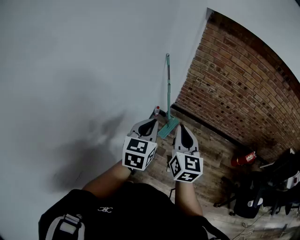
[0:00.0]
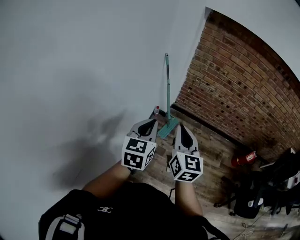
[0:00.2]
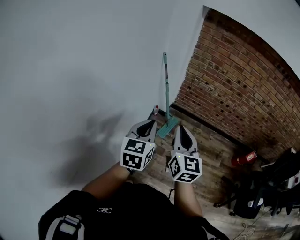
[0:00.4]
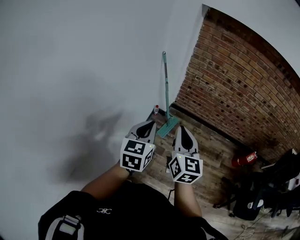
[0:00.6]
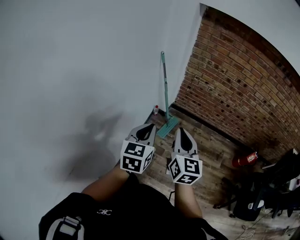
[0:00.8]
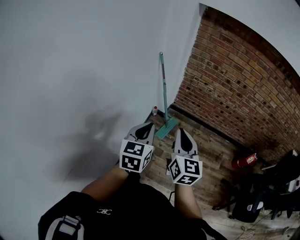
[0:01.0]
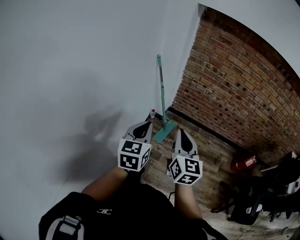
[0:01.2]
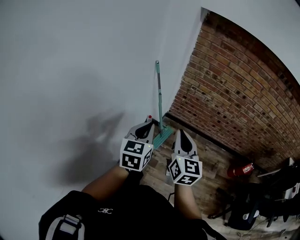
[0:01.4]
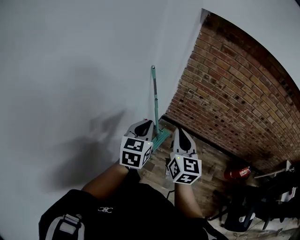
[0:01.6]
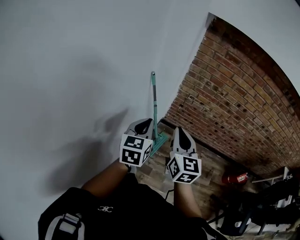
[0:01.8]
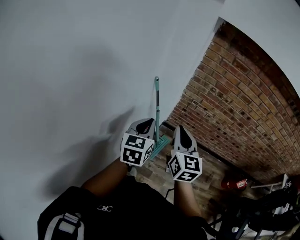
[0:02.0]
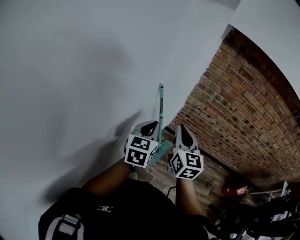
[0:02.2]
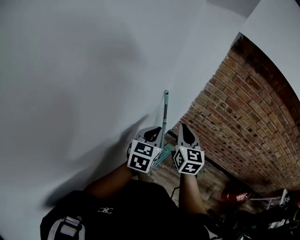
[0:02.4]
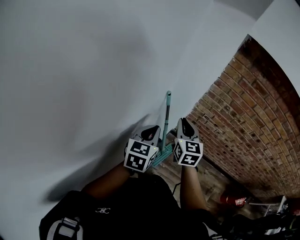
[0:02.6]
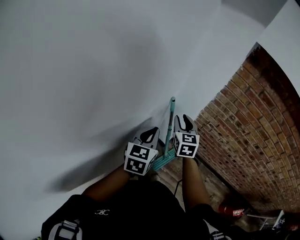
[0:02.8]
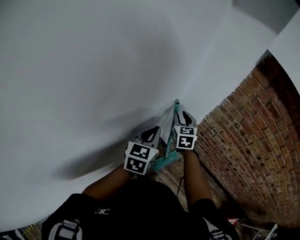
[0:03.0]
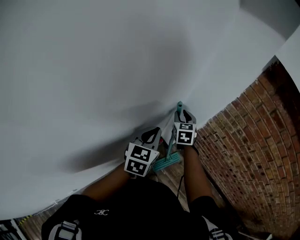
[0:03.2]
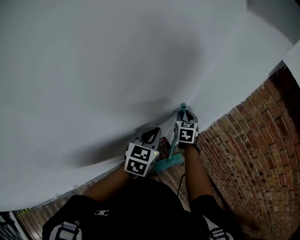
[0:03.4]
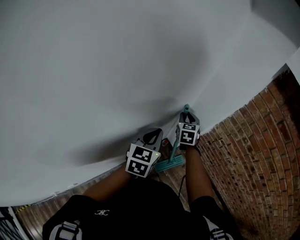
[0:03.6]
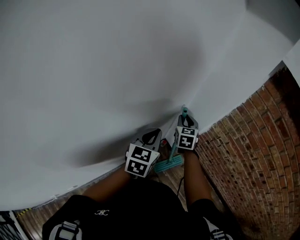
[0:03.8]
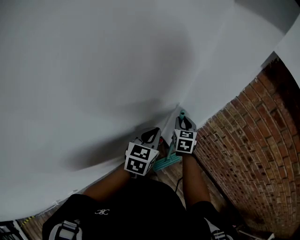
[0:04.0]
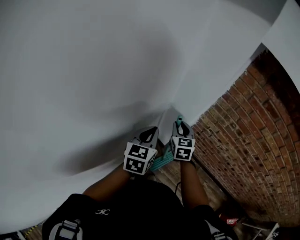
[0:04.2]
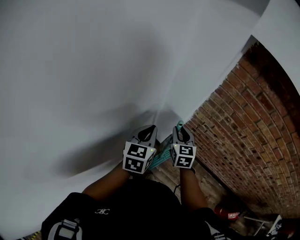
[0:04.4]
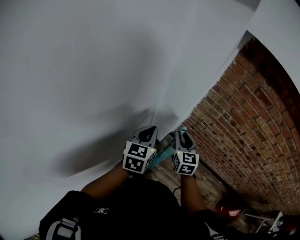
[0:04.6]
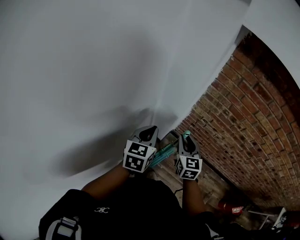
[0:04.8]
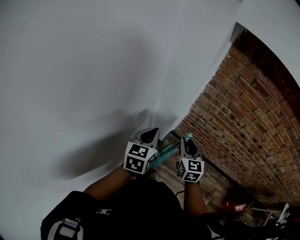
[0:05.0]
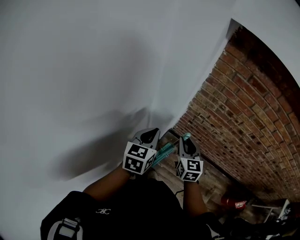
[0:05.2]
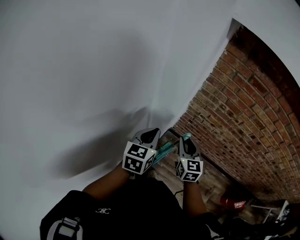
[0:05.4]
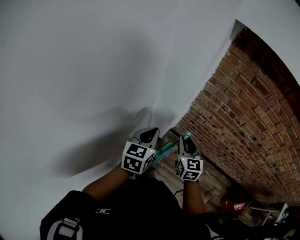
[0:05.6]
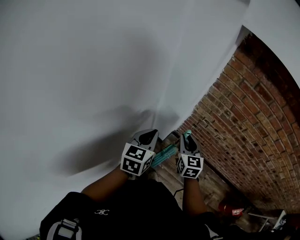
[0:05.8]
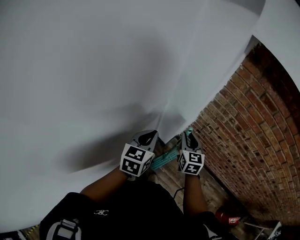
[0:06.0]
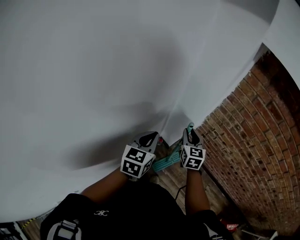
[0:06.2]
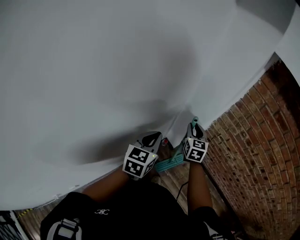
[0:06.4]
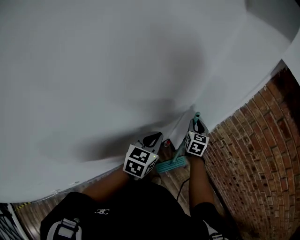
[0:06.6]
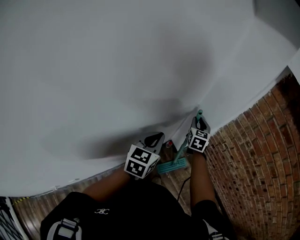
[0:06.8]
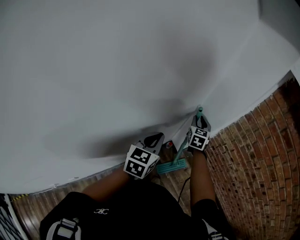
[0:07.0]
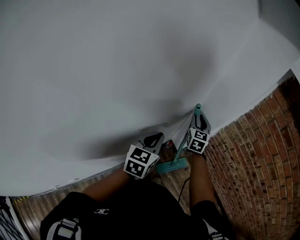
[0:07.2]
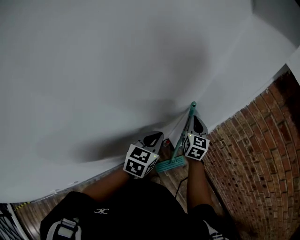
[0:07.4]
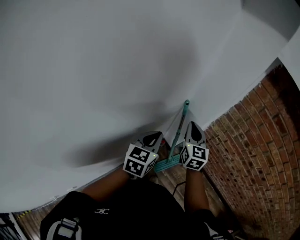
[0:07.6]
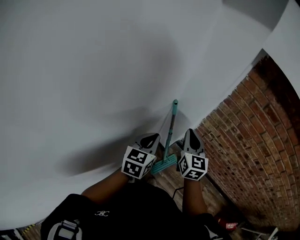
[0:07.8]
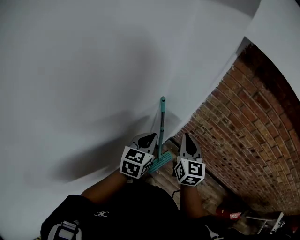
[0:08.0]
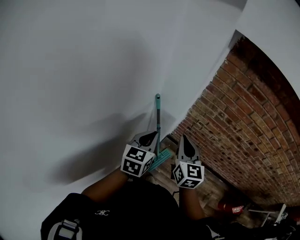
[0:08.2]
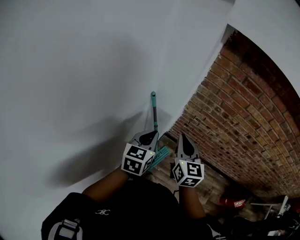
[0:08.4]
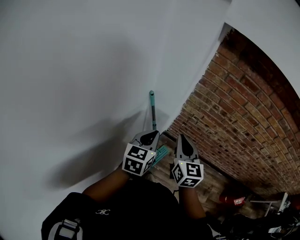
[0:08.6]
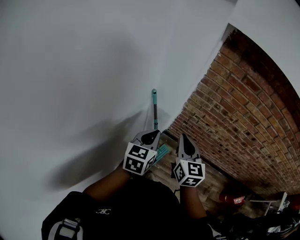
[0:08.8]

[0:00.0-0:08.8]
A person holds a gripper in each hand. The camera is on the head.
0:00.0 to 0:01.4: The left gripper is displaced forward by roughly 10 cm. The right gripper moves forward and to the right, some 15 cm.
0:01.4 to 0:03.0: The left gripper travels forward by roughly 30 cm. Meanwhile the right gripper travels forward by roughly 50 cm, swivels some 30 degrees, and opens its fingers.
0:03.0 to 0:04.4: The left gripper is displaced to the right by roughly 5 cm. The right gripper shifts some 10 cm to the right and backward.
0:04.4 to 0:05.8: The right gripper heads backward and to the right, covering roughly 10 cm.
0:05.8 to 0:07.4: The right gripper travels forward and to the left by approximately 15 cm, and closes. Meanwhile the left gripper travels to the left by roughly 10 cm.
0:07.4 to 0:08.8: The left gripper shifts about 10 cm to the right, and rotates roughly 20 degrees. The right gripper shifts some 20 cm backward, to the right and upward.

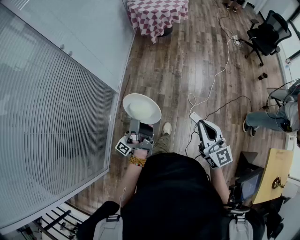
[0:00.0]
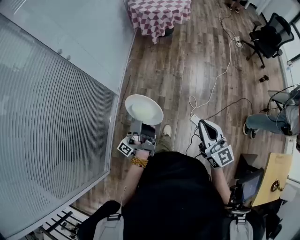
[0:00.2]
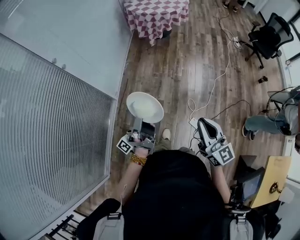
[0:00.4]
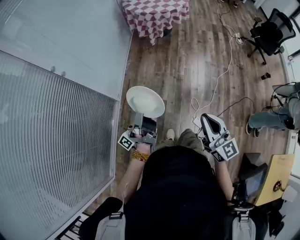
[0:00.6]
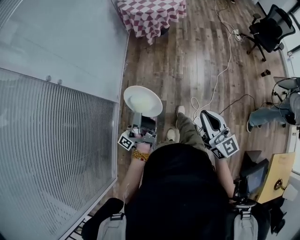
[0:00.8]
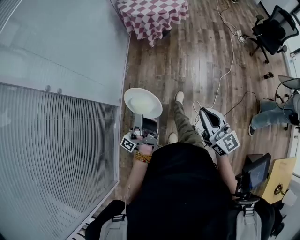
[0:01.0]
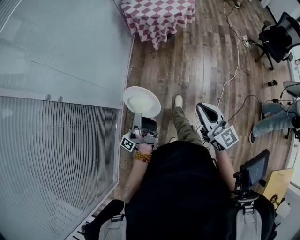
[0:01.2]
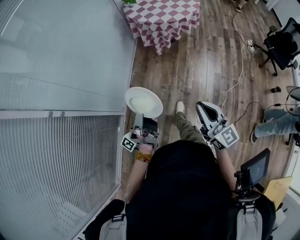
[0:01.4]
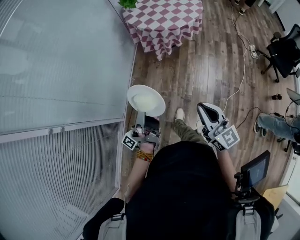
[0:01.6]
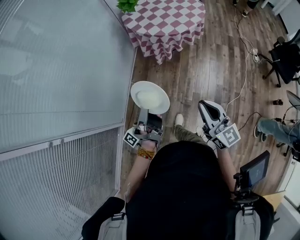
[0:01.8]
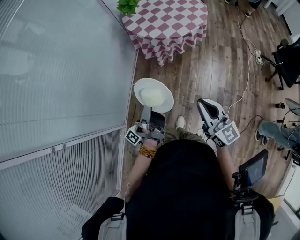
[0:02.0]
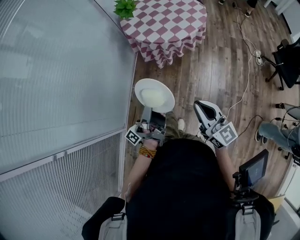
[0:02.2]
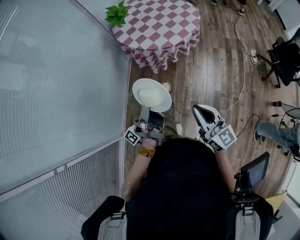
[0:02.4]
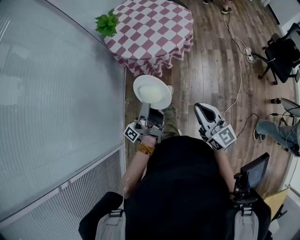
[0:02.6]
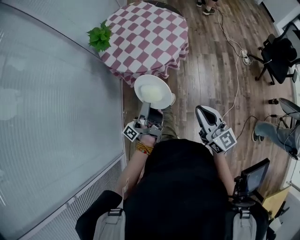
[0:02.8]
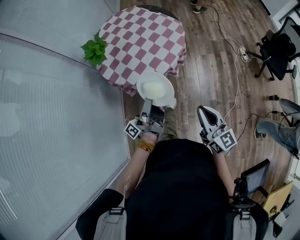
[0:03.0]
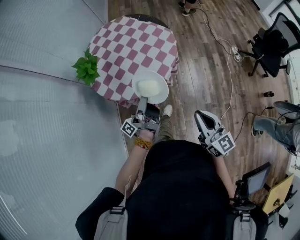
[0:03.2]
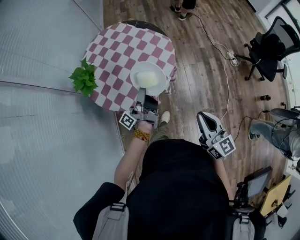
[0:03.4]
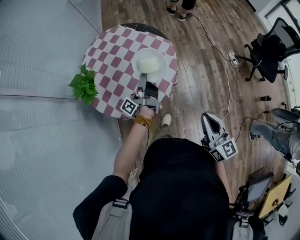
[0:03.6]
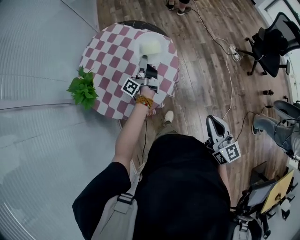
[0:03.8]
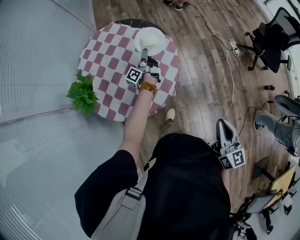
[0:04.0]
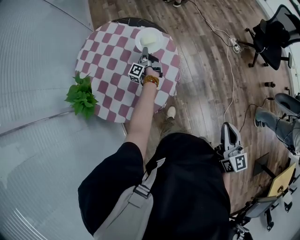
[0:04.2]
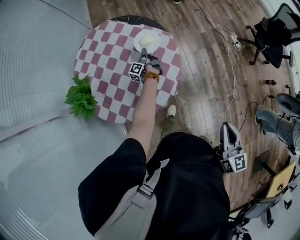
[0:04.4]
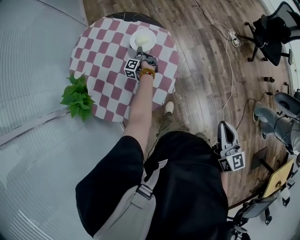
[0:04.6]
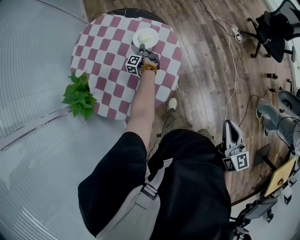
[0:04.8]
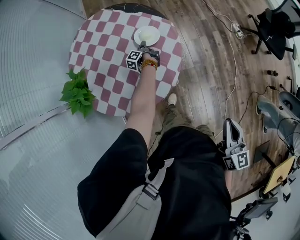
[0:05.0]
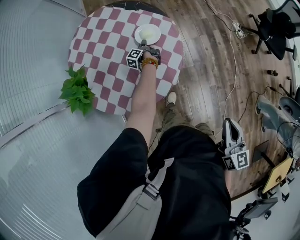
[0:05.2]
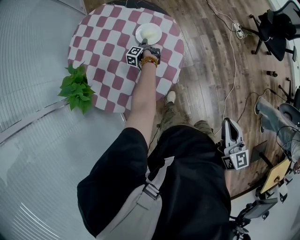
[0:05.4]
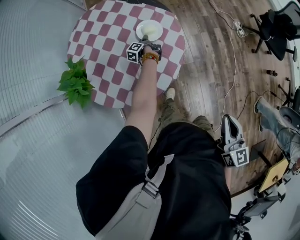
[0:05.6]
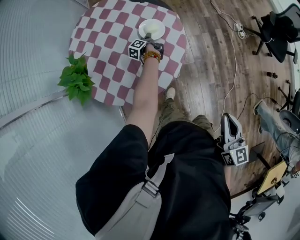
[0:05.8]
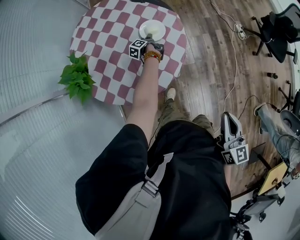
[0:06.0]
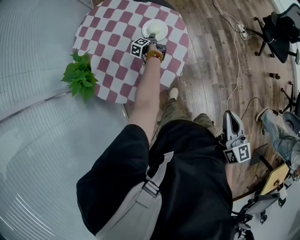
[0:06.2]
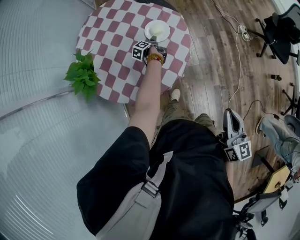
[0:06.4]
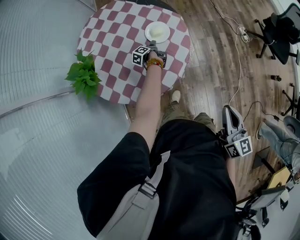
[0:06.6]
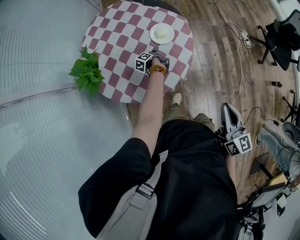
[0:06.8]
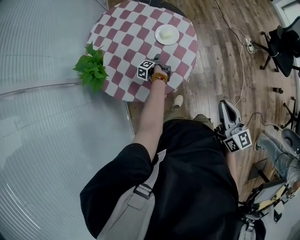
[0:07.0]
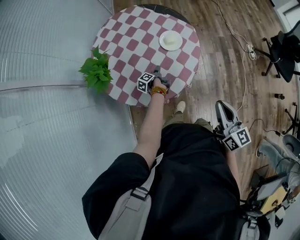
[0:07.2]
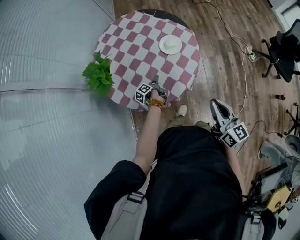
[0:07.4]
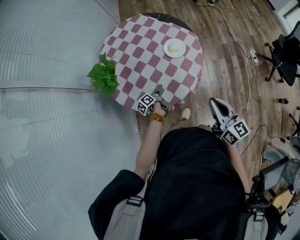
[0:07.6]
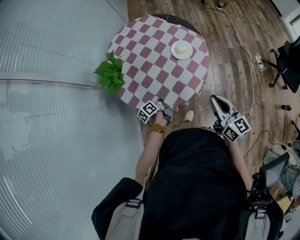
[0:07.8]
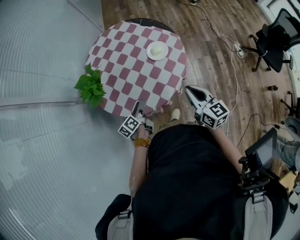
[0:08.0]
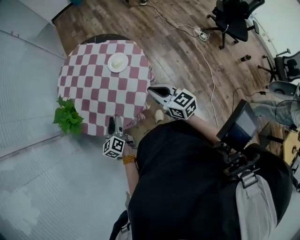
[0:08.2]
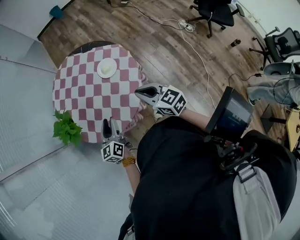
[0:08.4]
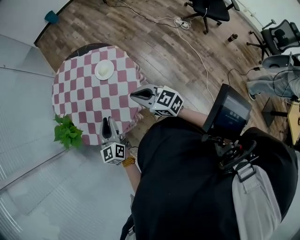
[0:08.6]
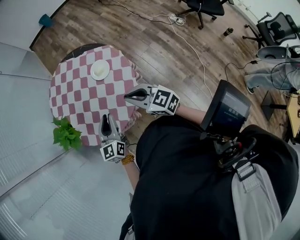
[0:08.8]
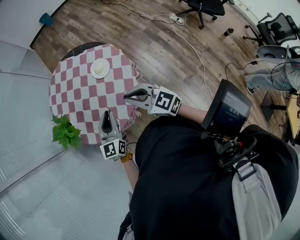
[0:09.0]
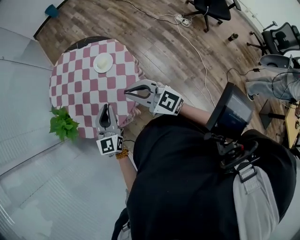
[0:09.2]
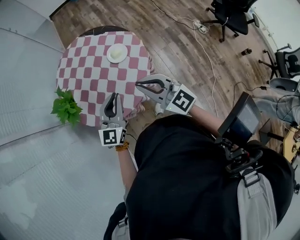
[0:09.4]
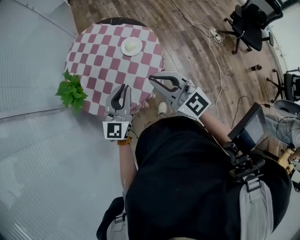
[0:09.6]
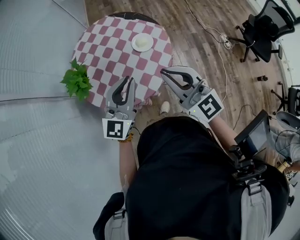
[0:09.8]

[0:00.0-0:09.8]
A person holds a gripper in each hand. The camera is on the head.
0:00.0 to 0:01.4: Both grippers are carried forward, roughly 50 cm.
0:01.4 to 0:02.8: The two grippers travel together, forward and to the right, about 50 cm.
0:02.8 to 0:04.2: The right gripper heads forward and to the right, covering approximately 25 cm, and turns by some 40 degrees; the left gripper goes roughly 60 cm forward, and tips its fingers downward by roughly 30 degrees.
0:04.2 to 0:05.6: The left gripper is displaced downward by approximately 15 cm, and turns by roughly 30 degrees.
0:05.6 to 0:07.0: The left gripper is displaced backward by about 15 cm, and opens, while the right gripper shifts by roughly 5 cm.
0:07.0 to 0:08.4: The left gripper goes about 30 cm upward and backward, and rotates around the line of its fingers by roughly 70 degrees, clockwise from behind, while the right gripper heads to the left and forward, covering about 10 cm.
0:08.4 to 0:09.8: The grippers both shift upward by approximately 15 cm. The right gripper swivels approximately 40 degrees. Meanwhile the left gripper rotates some 40 degrees, and closes up.

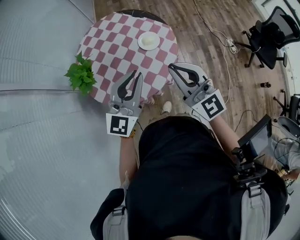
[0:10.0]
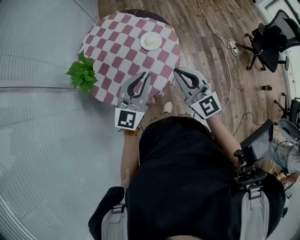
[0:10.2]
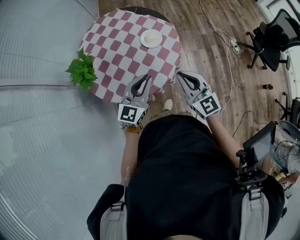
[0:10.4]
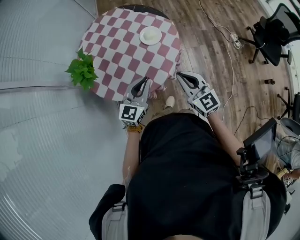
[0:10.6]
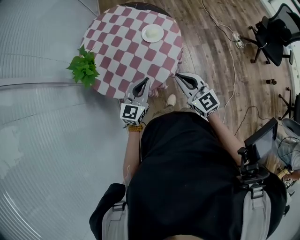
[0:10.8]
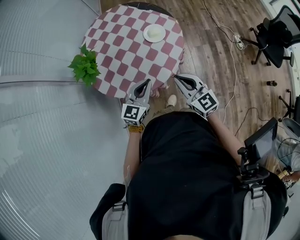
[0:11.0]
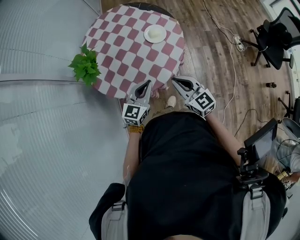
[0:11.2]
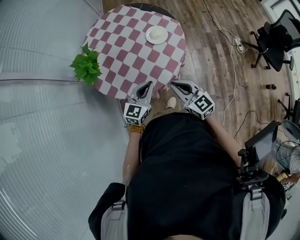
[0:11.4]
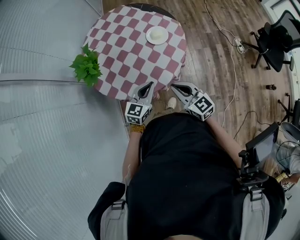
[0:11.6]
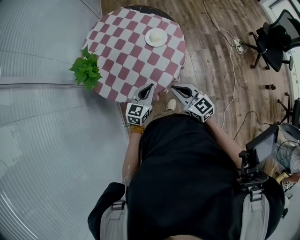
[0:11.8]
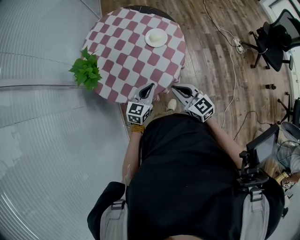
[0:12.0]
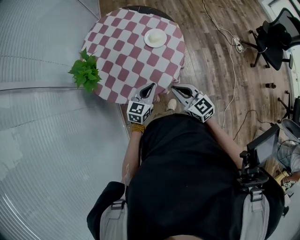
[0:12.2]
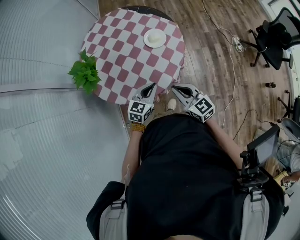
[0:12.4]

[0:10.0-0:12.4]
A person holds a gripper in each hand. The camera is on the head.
0:10.0 to 0:11.2: Both grippers travel together downward, some 20 cm. The left gripper turns by roughly 30 degrees, while the right gripper rotates about 30 degrees.
0:11.2 to 0:12.4: The left gripper moves downward, about 5 cm.

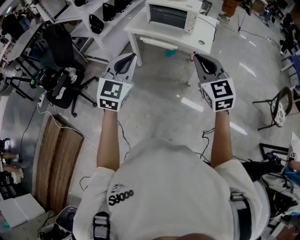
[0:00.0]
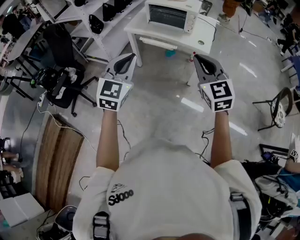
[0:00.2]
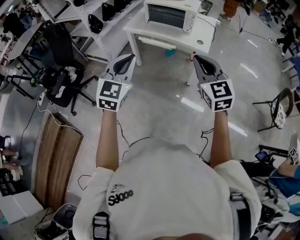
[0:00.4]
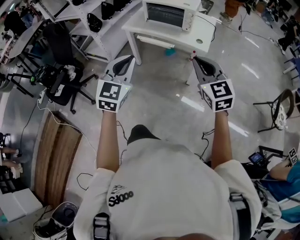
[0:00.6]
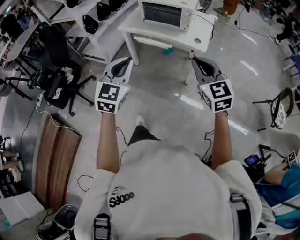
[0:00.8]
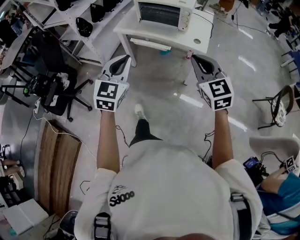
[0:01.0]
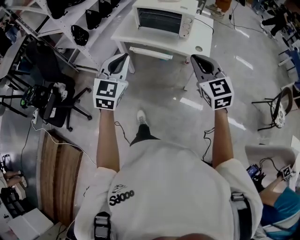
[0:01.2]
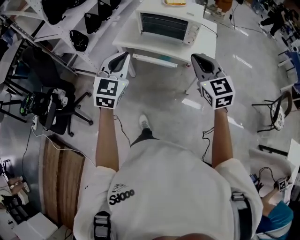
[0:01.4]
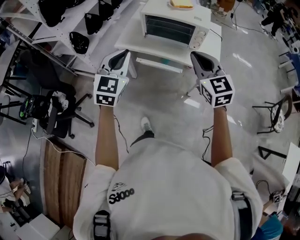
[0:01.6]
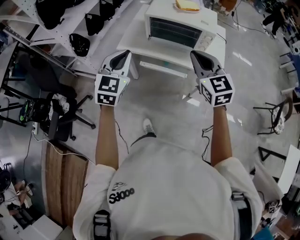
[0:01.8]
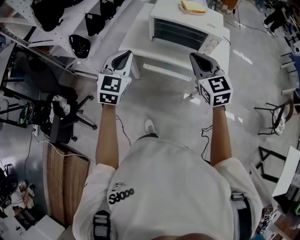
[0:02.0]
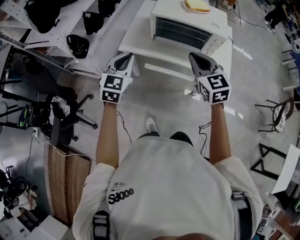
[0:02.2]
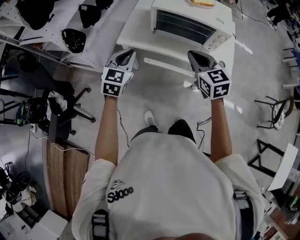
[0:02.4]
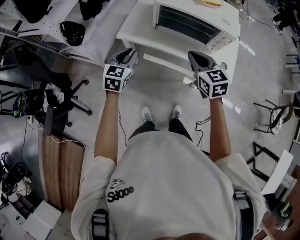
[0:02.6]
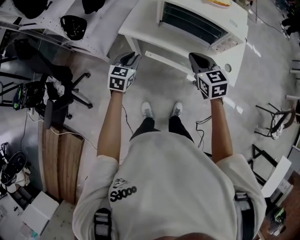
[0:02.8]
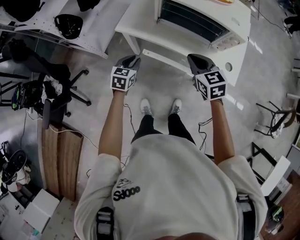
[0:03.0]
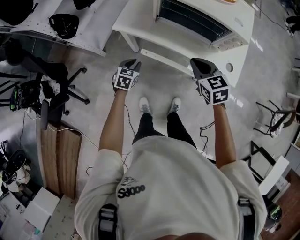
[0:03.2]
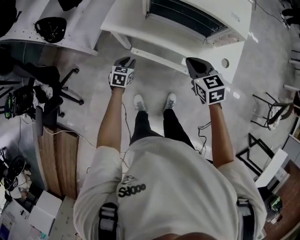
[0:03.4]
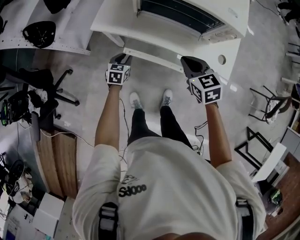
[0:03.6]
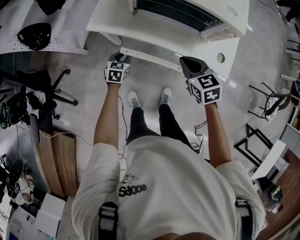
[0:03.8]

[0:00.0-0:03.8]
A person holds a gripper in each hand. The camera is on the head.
0:00.0 to 0:01.2: The grippers both shift forward by about 20 cm.
0:01.2 to 0:02.6: The left gripper shifts roughly 40 cm forward and downward, and swivels about 20 degrees, while the right gripper moves forward and to the left, some 35 cm, and turns by some 20 degrees.
0:02.6 to 0:03.8: The left gripper travels downward by roughly 30 cm, and rotates about 20 degrees; the right gripper travels downward by roughly 15 cm.
